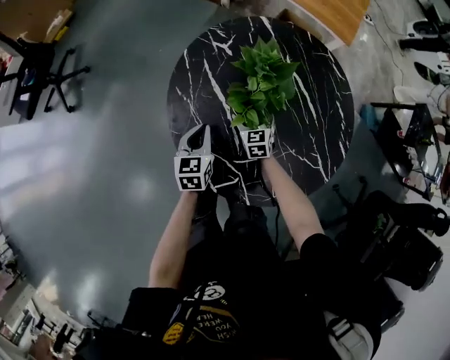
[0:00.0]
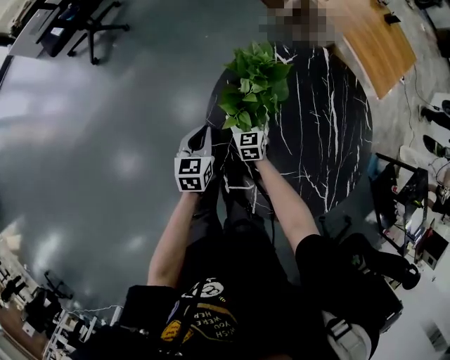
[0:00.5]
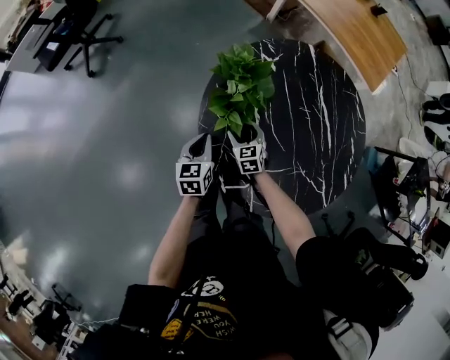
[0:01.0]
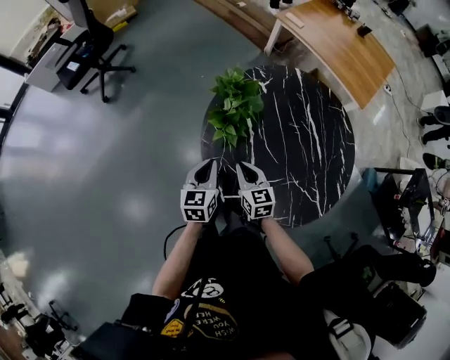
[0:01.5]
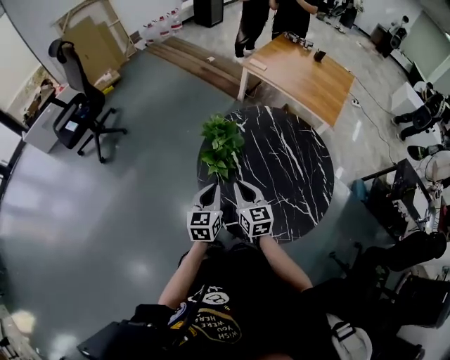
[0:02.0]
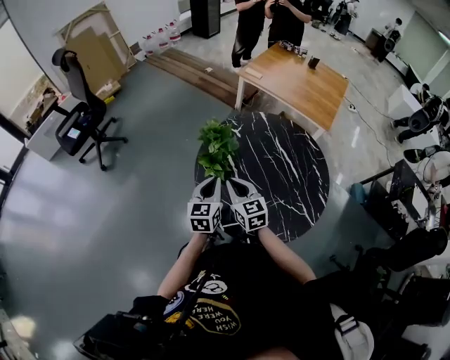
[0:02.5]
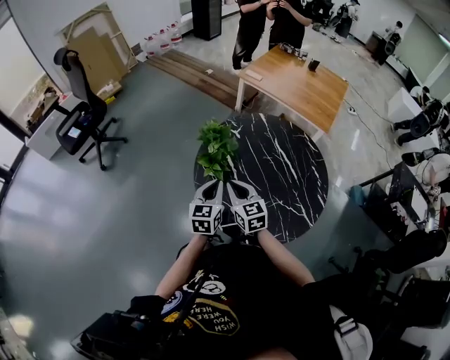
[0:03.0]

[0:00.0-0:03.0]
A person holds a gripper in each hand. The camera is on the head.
0:00.0 to 0:01.5: The right gripper heads upward, to the left and backward, covering some 25 cm, changes its angle by some 30 degrees, and closes up. Meanwhile the left gripper travels upward, backward and to the left by about 15 cm.
0:01.5 to 0:03.0: The two grippers go some 15 cm upward.

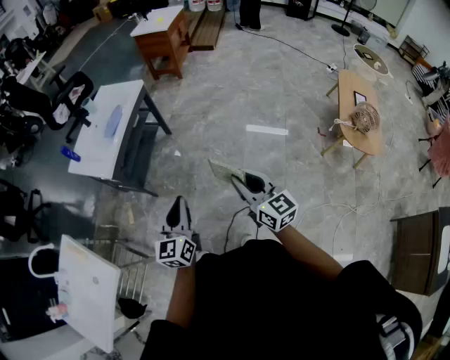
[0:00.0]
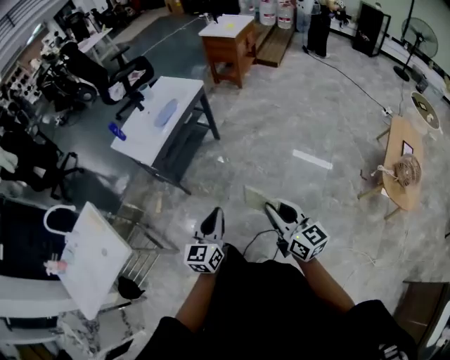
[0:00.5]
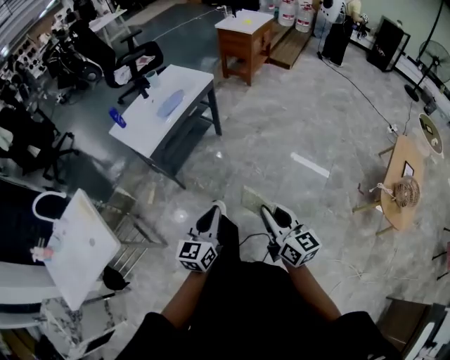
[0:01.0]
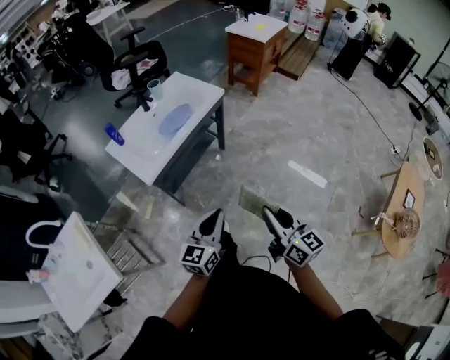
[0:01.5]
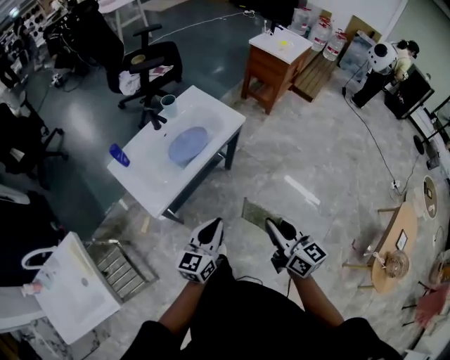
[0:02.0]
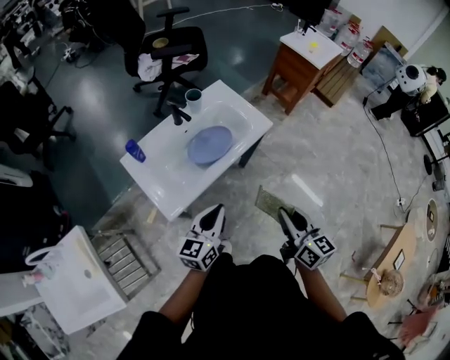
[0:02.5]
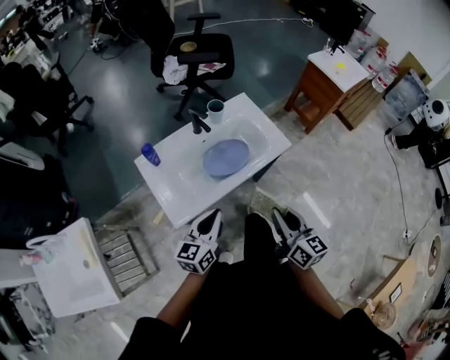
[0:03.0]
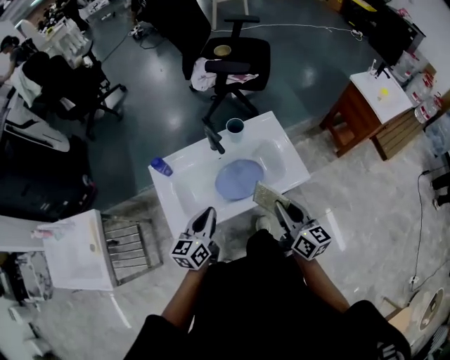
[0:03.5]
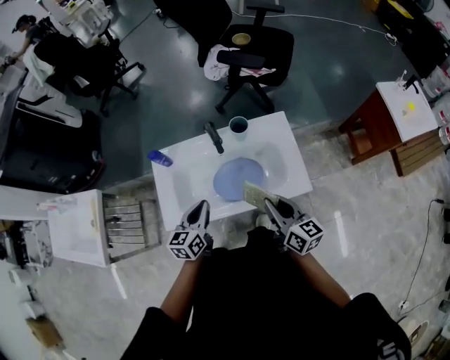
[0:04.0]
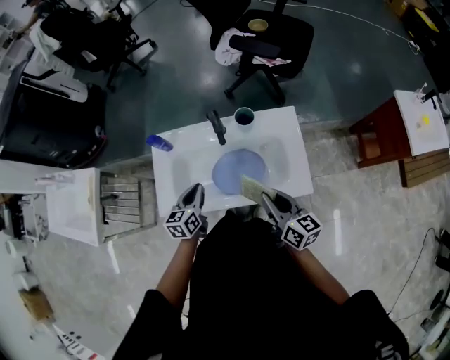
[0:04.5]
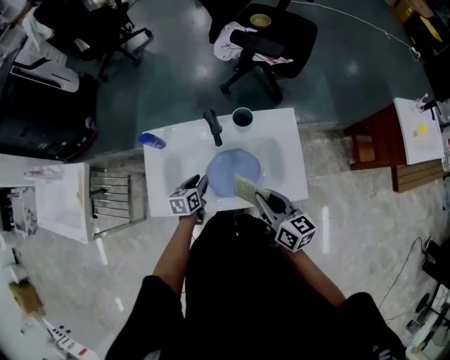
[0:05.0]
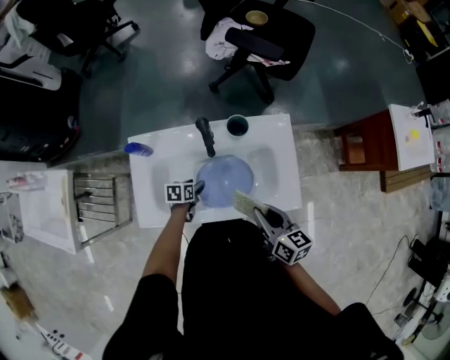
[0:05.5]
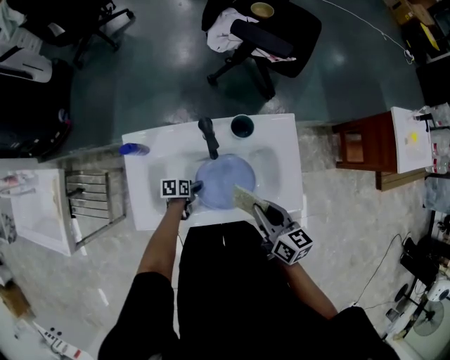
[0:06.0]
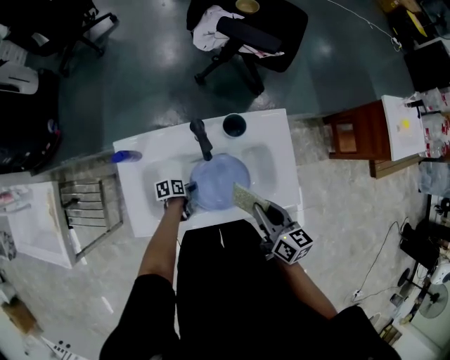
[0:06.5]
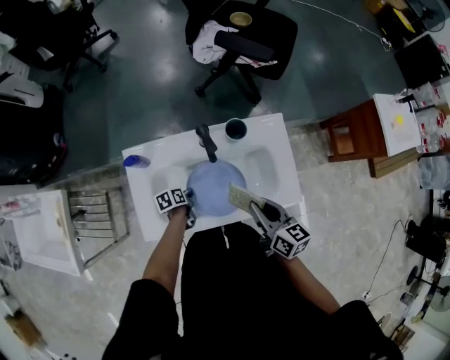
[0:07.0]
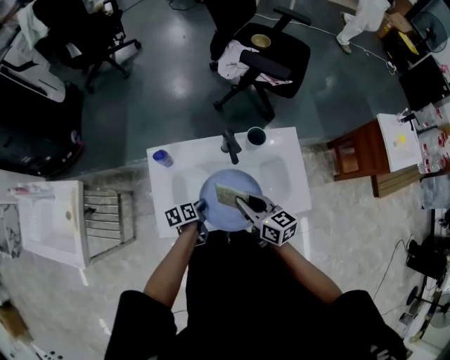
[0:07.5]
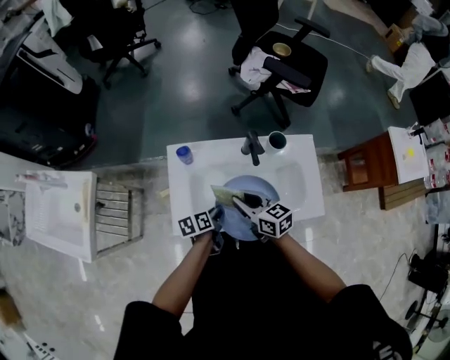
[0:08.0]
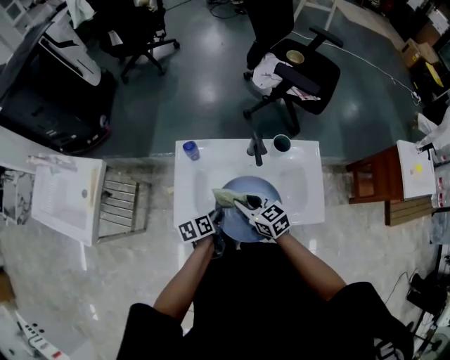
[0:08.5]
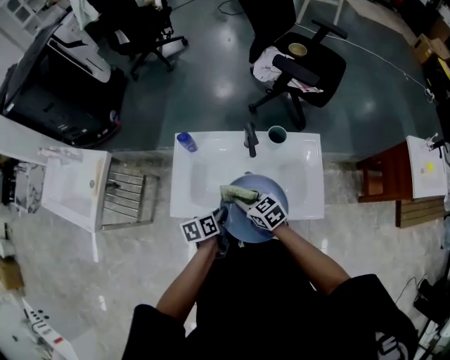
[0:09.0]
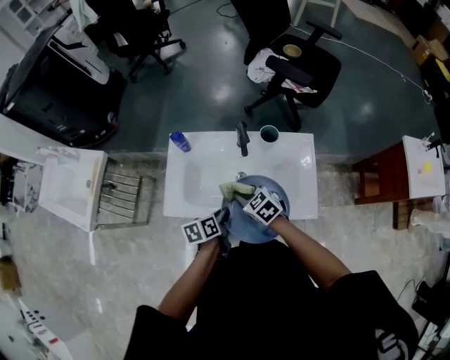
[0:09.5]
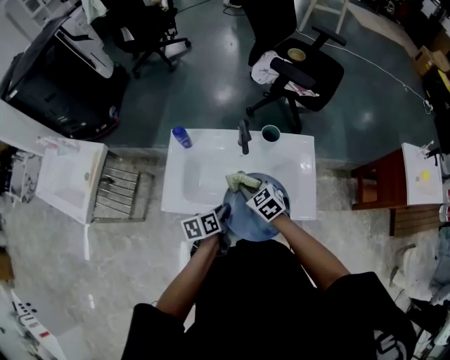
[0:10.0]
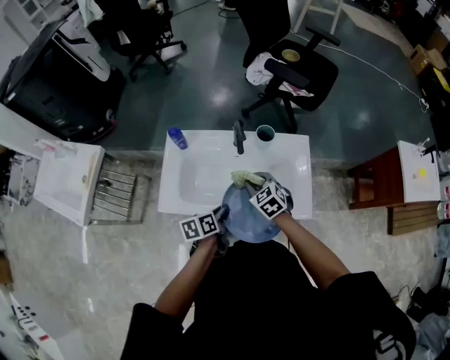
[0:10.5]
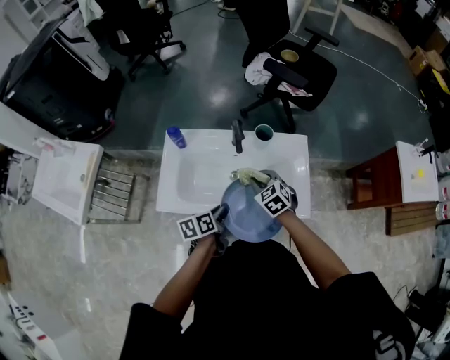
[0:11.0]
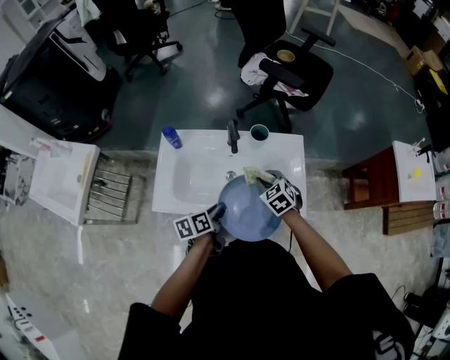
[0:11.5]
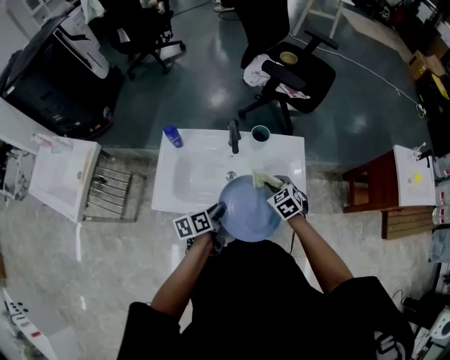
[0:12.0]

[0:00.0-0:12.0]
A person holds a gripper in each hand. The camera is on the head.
0:00.0 to 0:02.0: The two grippers travel together, forward, approximately 40 cm. The right gripper turns by about 20 degrees.
0:02.0 to 0:04.0: The right gripper shifts by about 50 cm, and rotates approximately 40 degrees. The left gripper changes place by roughly 35 cm, and changes its angle by about 50 degrees.
0:04.0 to 0:06.0: The left gripper shifts some 30 cm downward, points its fingers about 30 degrees further downward, and opens. Meanwhile the right gripper goes roughly 10 cm downward and forward.
0:06.0 to 0:08.0: The right gripper heads to the left, covering some 20 cm, and rotates some 20 degrees; the left gripper shifts some 20 cm upward, changes its angle by about 30 degrees, and closes.
0:08.0 to 0:10.0: The right gripper moves to the right and downward, about 10 cm, and changes its angle by about 40 degrees; the left gripper goes approximately 15 cm to the right, backward and upward.
0:10.0 to 0:12.0: The right gripper shifts some 15 cm to the right.

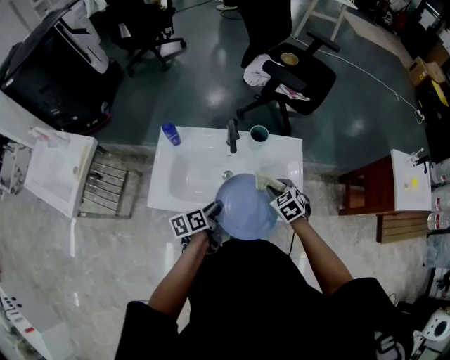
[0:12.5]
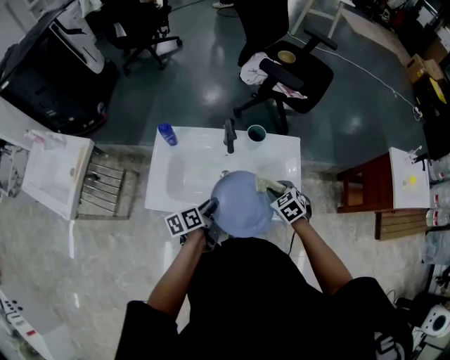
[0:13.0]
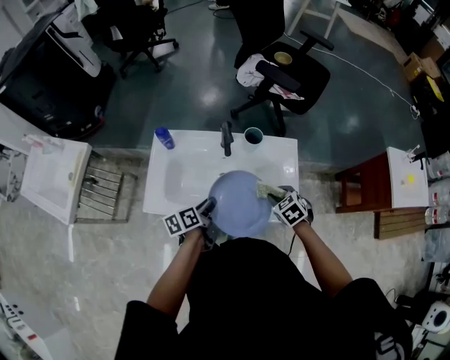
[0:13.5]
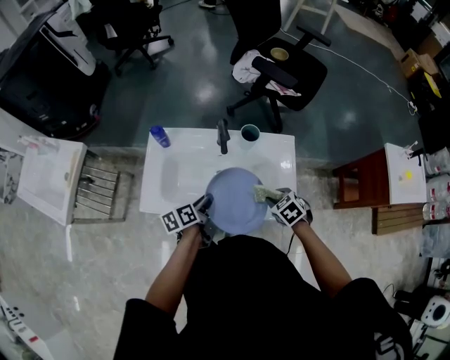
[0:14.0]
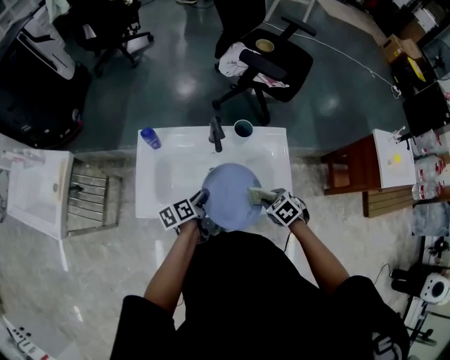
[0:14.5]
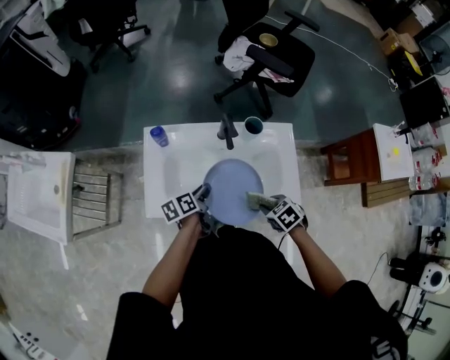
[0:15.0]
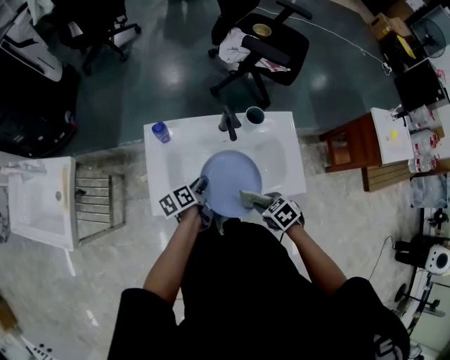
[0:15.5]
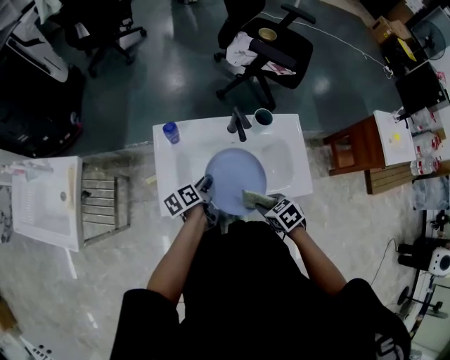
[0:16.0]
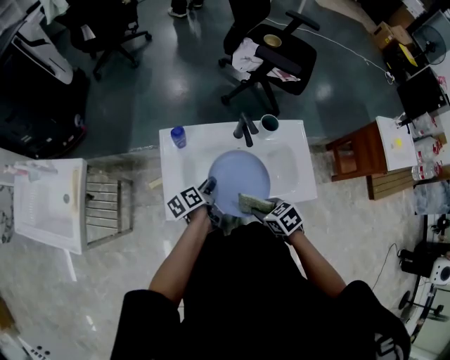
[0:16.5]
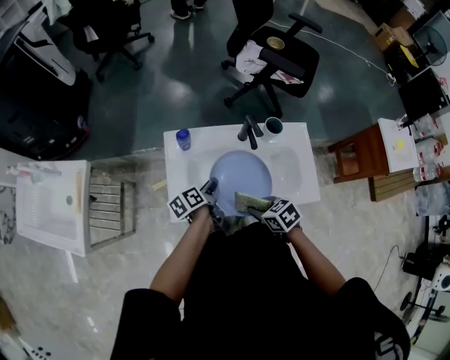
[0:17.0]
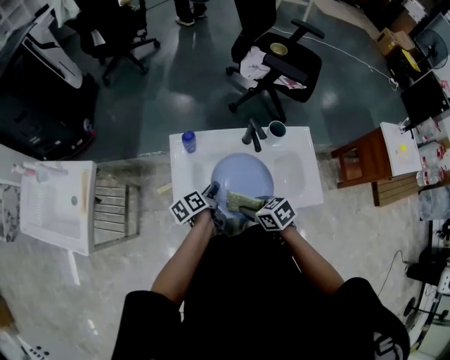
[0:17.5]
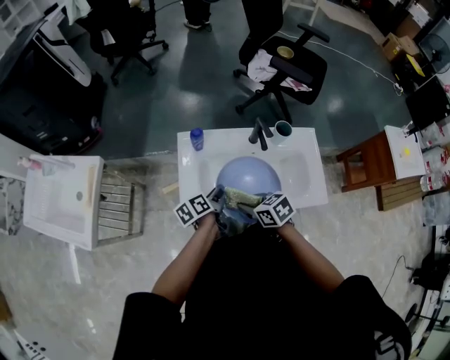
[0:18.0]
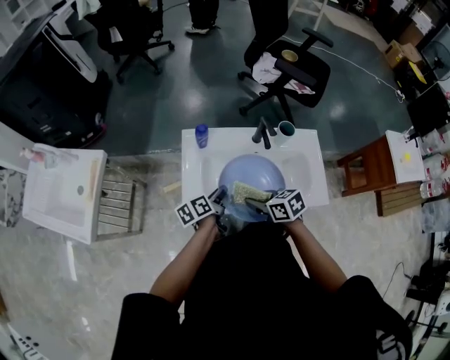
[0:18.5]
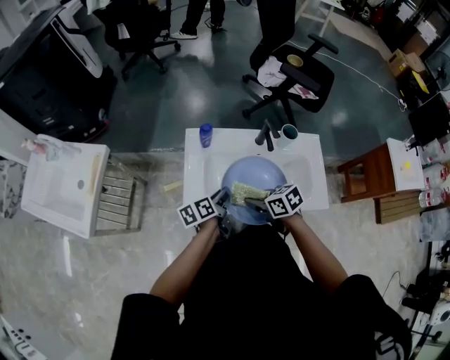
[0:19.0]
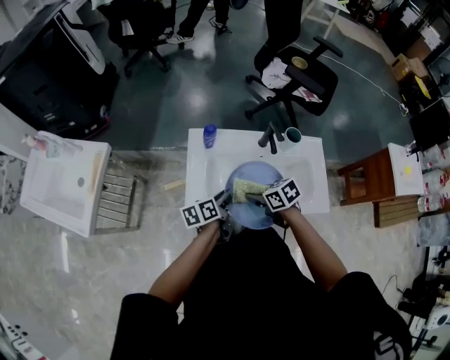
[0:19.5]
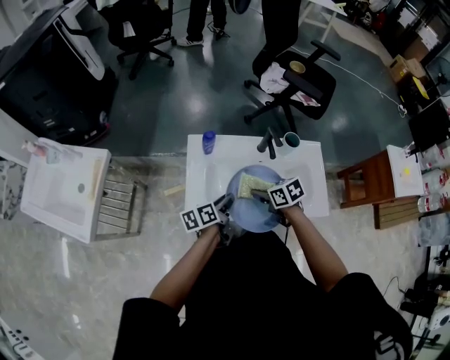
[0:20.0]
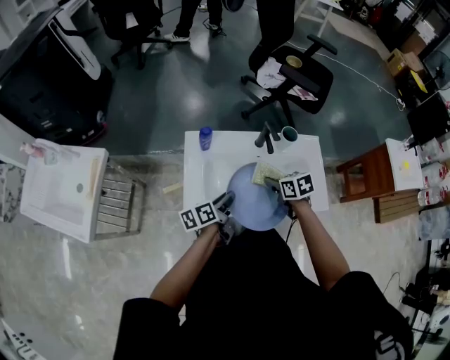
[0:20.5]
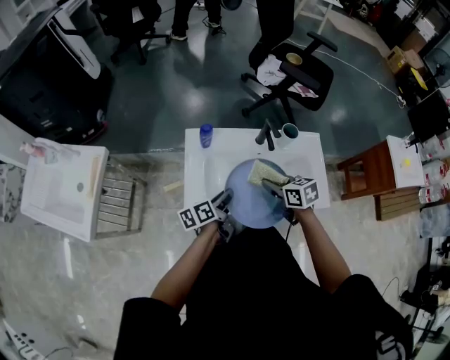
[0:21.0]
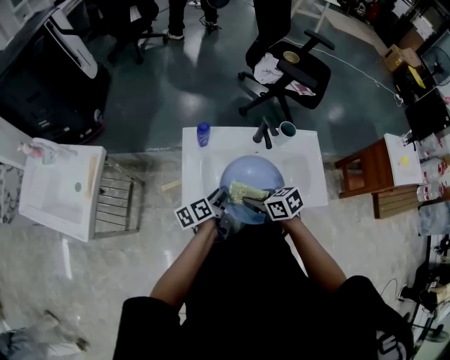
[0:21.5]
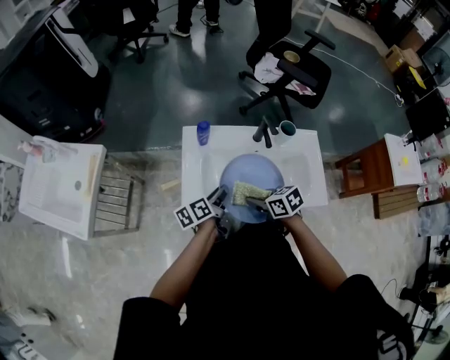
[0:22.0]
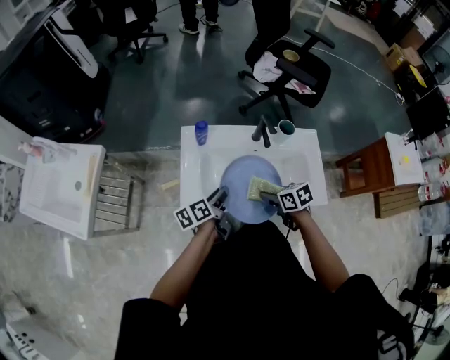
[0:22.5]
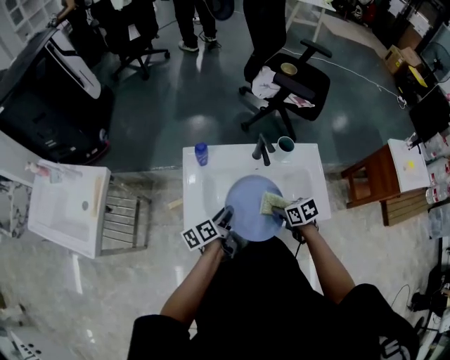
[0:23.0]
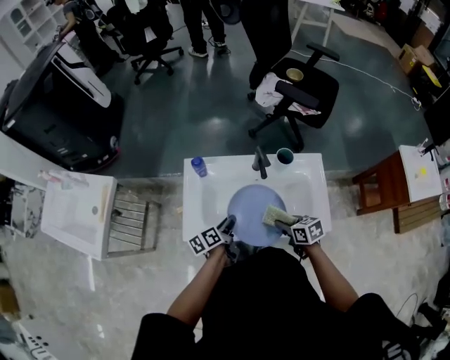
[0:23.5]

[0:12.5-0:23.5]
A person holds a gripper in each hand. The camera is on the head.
0:12.5 to 0:14.5: The right gripper moves backward, about 5 cm. The left gripper shifts roughly 5 cm forward.
0:14.5 to 0:16.0: The right gripper moves to the left, some 15 cm. Meanwhile the left gripper shifts approximately 10 cm to the left.
0:16.0 to 0:18.0: The right gripper heads to the left and forward, covering approximately 15 cm.
0:18.0 to 0:20.0: The right gripper travels forward by about 5 cm.
0:20.0 to 0:21.5: The right gripper is displaced backward by approximately 5 cm.
0:21.5 to 0:23.5: The right gripper shifts roughly 15 cm to the right, while the left gripper heads to the right, covering roughly 5 cm.
